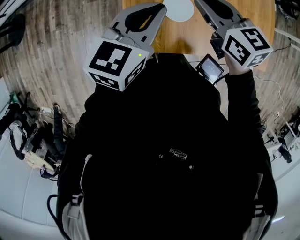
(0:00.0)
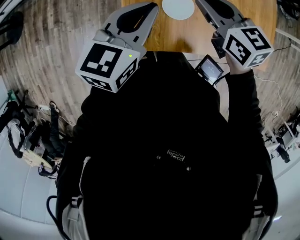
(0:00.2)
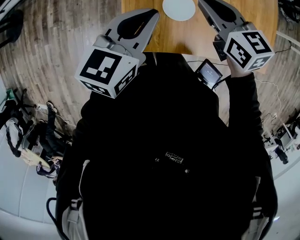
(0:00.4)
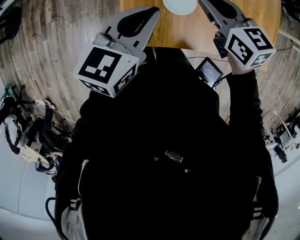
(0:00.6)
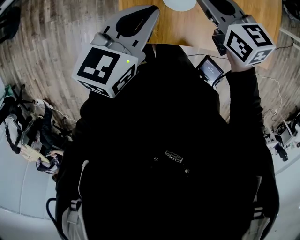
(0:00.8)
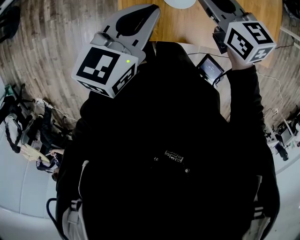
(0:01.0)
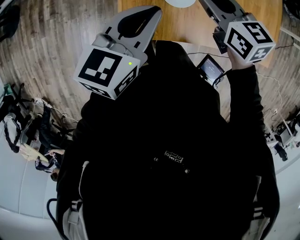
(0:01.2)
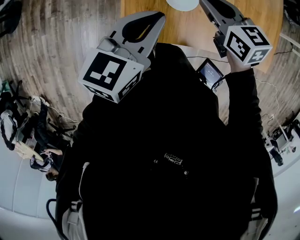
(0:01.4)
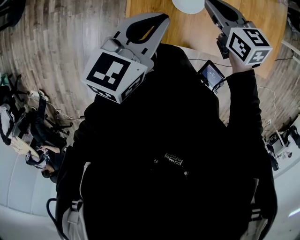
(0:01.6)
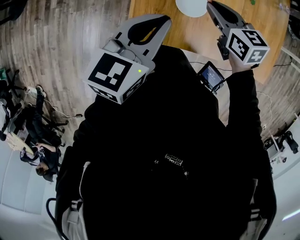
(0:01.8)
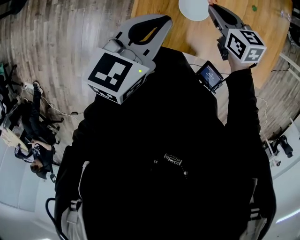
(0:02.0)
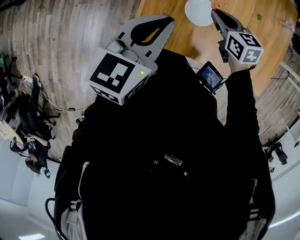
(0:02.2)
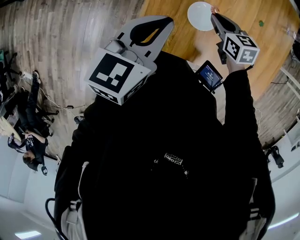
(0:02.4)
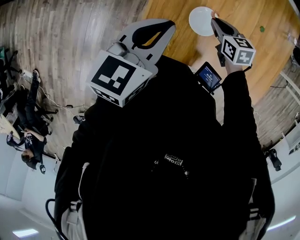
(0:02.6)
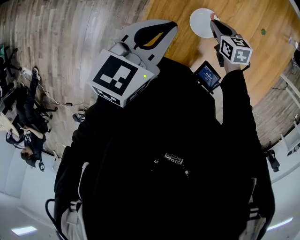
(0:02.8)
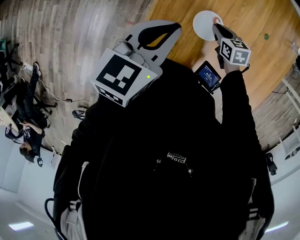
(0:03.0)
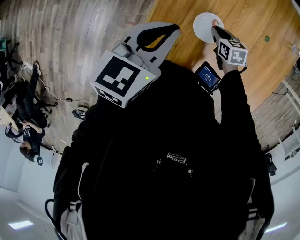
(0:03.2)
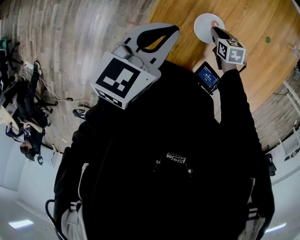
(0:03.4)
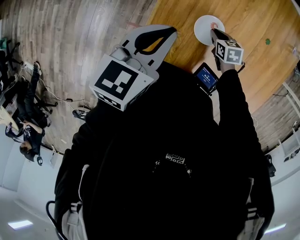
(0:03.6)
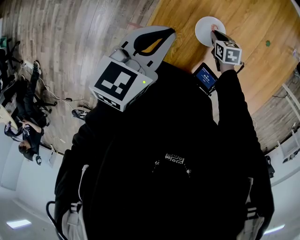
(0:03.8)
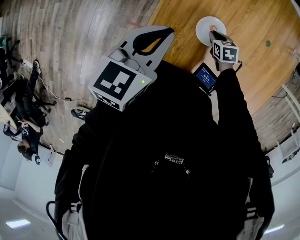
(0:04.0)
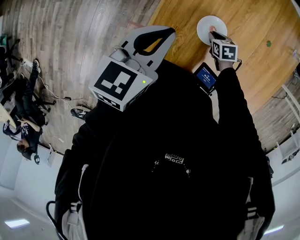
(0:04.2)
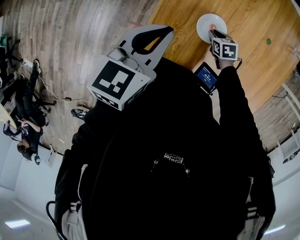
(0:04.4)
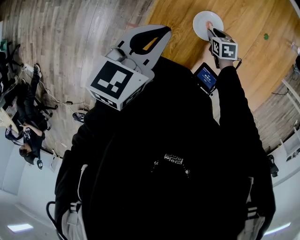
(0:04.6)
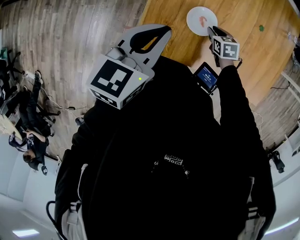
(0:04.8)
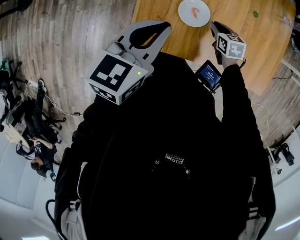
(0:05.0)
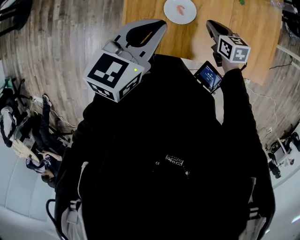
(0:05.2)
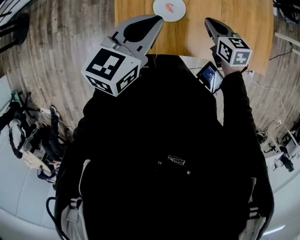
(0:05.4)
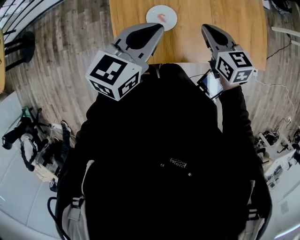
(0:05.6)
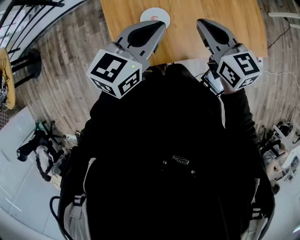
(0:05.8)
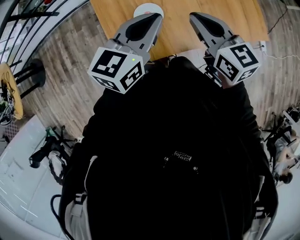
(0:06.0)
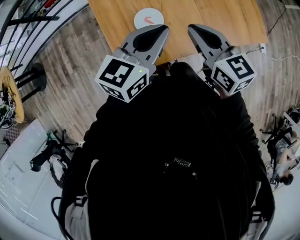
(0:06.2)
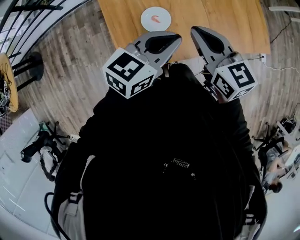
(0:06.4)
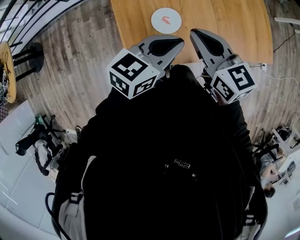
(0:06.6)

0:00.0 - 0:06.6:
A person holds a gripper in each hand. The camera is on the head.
0:00.0 - 0:01.6: The left gripper goes approximately 5 cm backward. The right gripper goes about 10 cm downward.
0:01.6 - 0:03.2: The right gripper goes approximately 20 cm downward, and swivels roughly 20 degrees; the left gripper shifts some 10 cm forward and to the left.
0:03.2 - 0:05.0: The left gripper shifts by approximately 5 cm, while the right gripper changes place by about 5 cm.
0:05.0 - 0:06.6: The left gripper shifts by about 15 cm, and turns by about 30 degrees. Meanwhile the right gripper heads upward, covering roughly 30 cm, and tips its fingers upward by roughly 40 degrees.

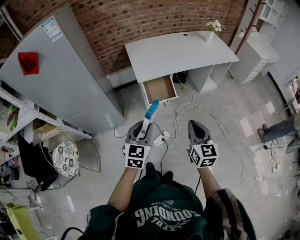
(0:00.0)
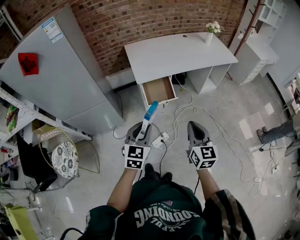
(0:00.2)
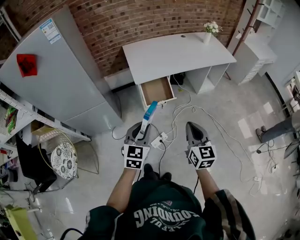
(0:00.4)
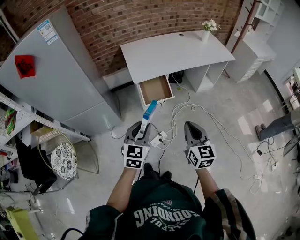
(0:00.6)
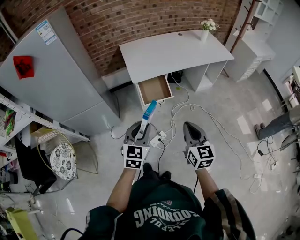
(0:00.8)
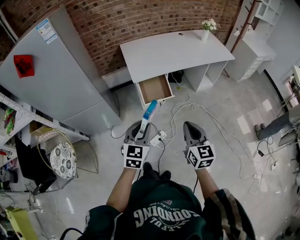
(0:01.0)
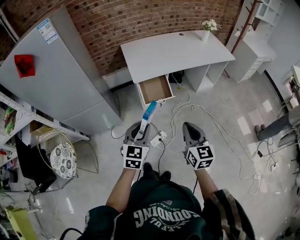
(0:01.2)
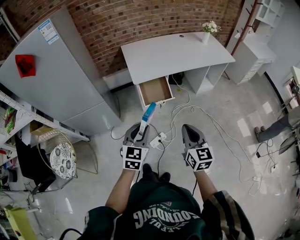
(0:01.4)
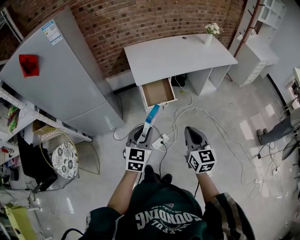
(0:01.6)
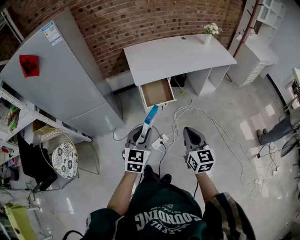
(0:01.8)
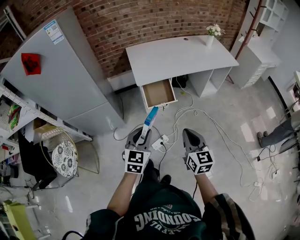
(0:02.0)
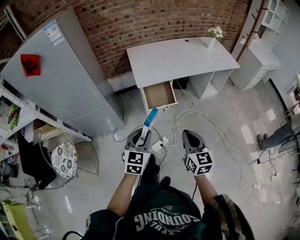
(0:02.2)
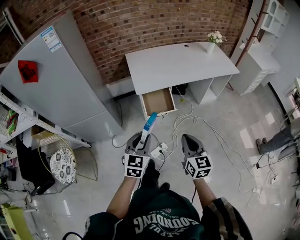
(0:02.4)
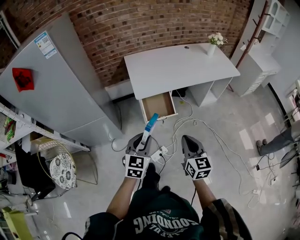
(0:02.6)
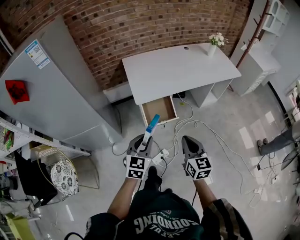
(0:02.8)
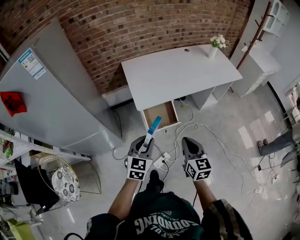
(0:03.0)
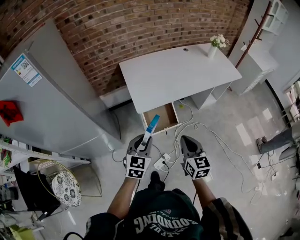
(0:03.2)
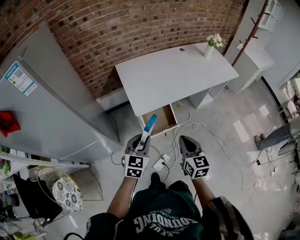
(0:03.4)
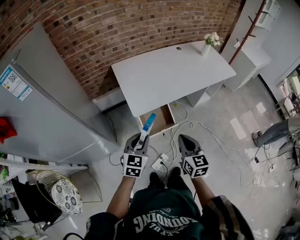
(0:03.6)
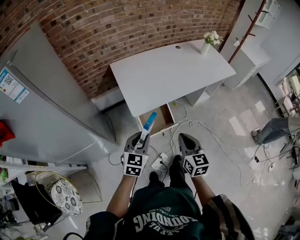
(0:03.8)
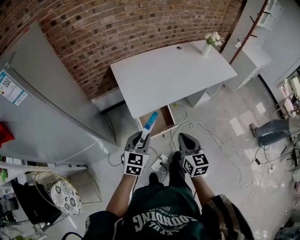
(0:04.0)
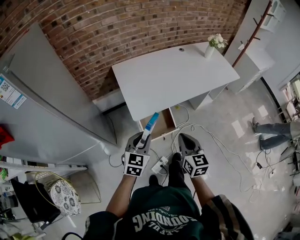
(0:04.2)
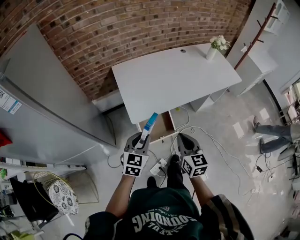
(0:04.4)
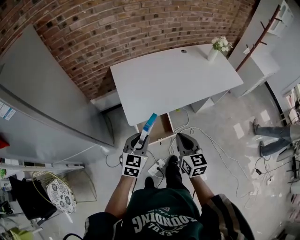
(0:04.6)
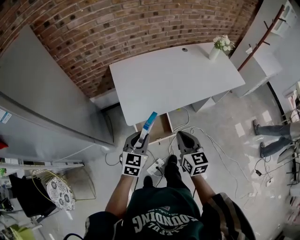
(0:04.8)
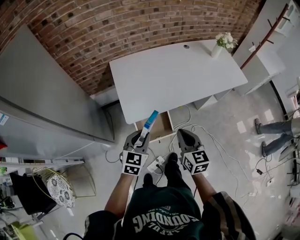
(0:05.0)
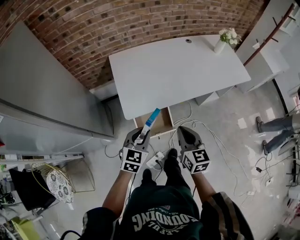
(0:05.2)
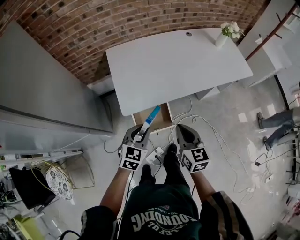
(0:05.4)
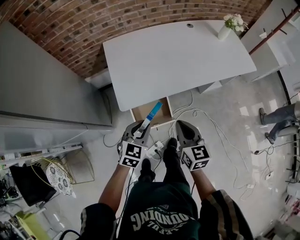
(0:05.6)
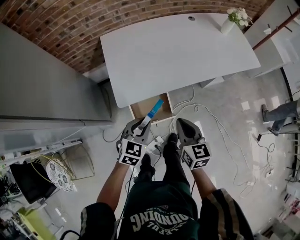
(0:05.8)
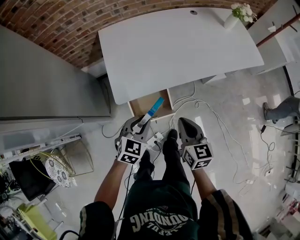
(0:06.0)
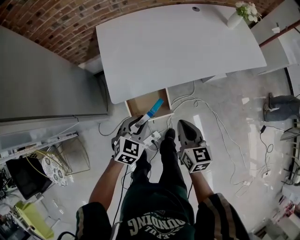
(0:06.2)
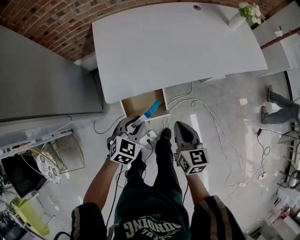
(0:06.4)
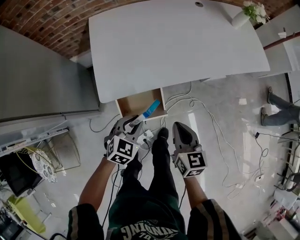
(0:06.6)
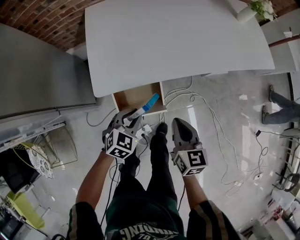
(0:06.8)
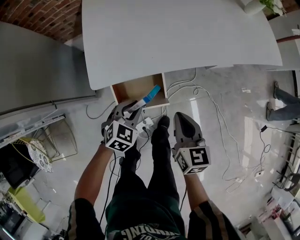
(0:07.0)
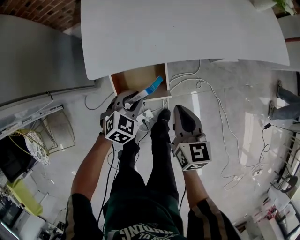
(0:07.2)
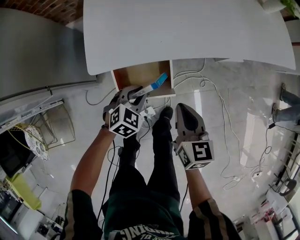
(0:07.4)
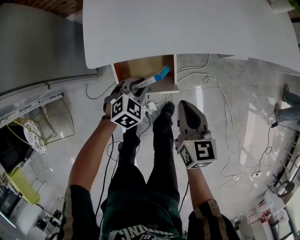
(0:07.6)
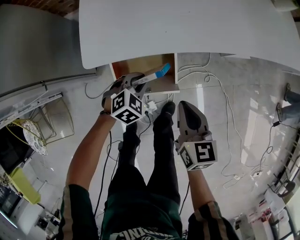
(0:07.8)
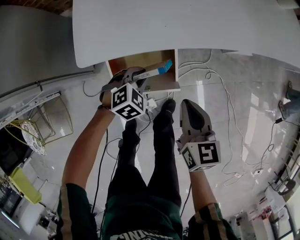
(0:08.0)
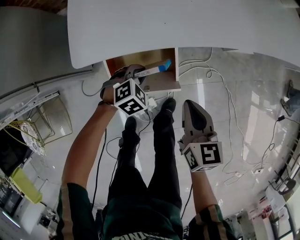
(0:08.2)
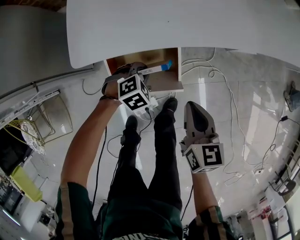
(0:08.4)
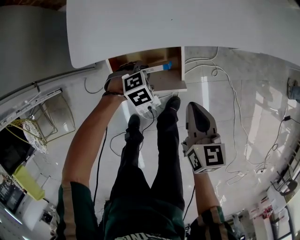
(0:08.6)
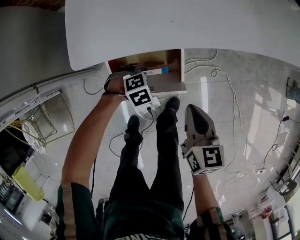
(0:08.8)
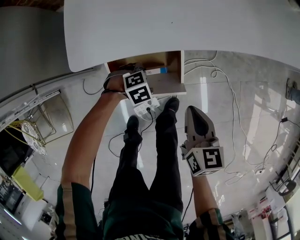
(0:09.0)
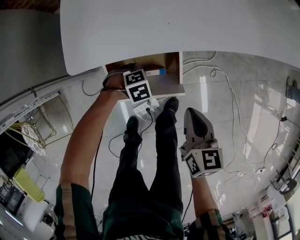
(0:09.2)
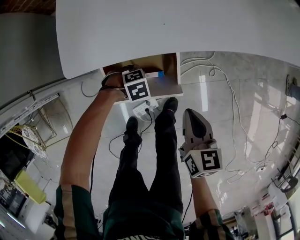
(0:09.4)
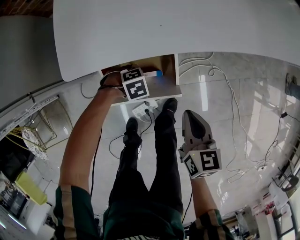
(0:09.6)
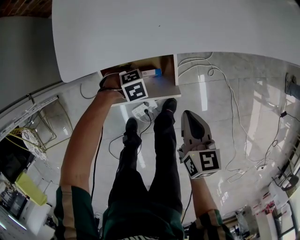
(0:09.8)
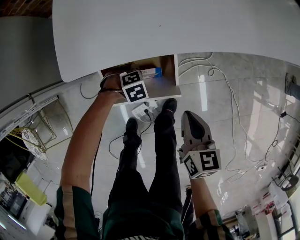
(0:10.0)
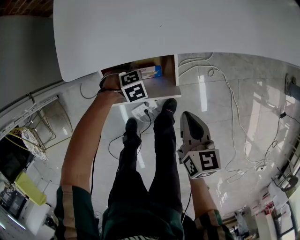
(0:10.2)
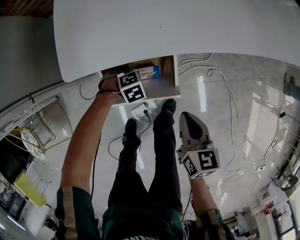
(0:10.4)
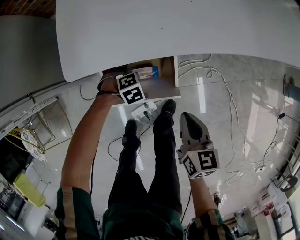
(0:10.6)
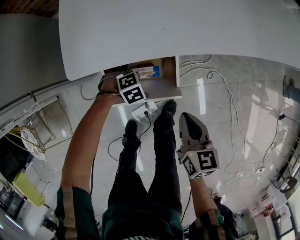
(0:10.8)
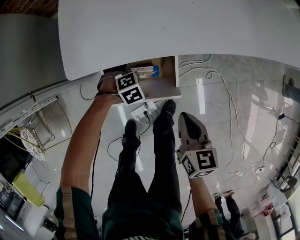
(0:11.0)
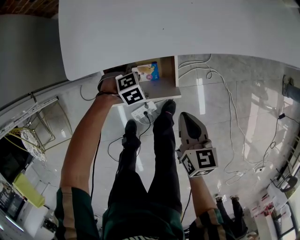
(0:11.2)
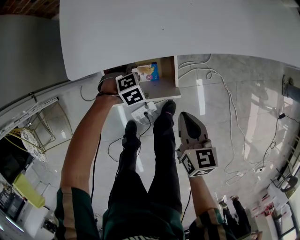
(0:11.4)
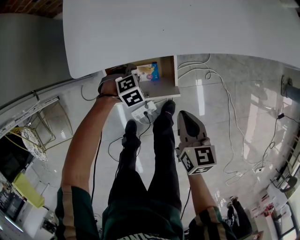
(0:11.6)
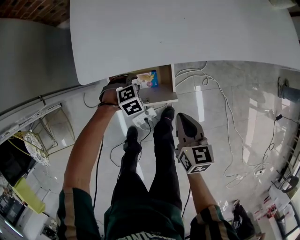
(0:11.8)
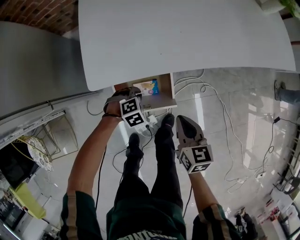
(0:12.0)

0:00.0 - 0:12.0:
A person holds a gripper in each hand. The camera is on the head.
0:00.0 - 0:01.6: The grippers make only small movements.
0:01.6 - 0:03.0: The grippers both shift forward by roughly 15 cm.
0:03.0 - 0:04.4: Both grippers move forward, about 15 cm.
0:04.4 - 0:06.0: The right gripper goes approximately 15 cm downward, forward and to the right. Meanwhile the left gripper moves downward, to the right and forward, roughly 15 cm.
0:06.0 - 0:07.6: The two grippers go roughly 20 cm downward.
0:07.6 - 0:09.0: The left gripper is displaced downward by about 15 cm, and rotates roughly 30 degrees. Meanwhile the right gripper heads downward, covering approximately 10 cm.
0:09.0 - 0:10.4: There are only small adjustments of the grippers.
0:10.4 - 0:12.0: The left gripper travels upward by about 10 cm, and closes its fingers; the right gripper travels upward by roughly 5 cm.

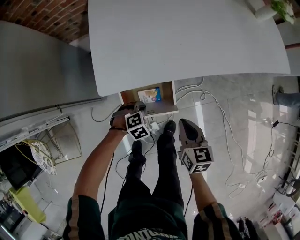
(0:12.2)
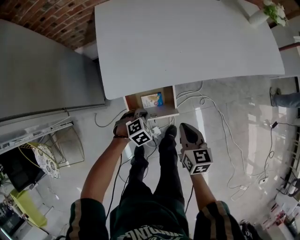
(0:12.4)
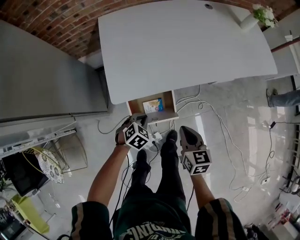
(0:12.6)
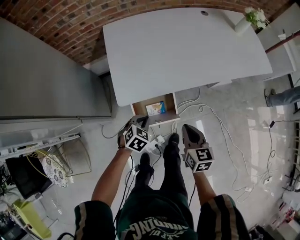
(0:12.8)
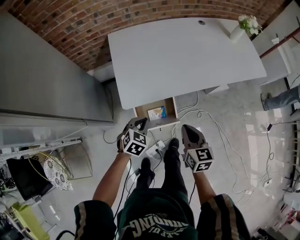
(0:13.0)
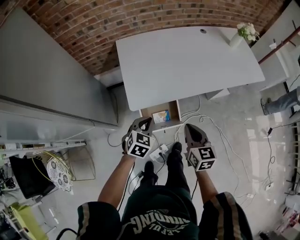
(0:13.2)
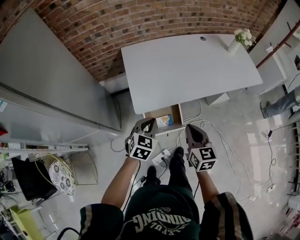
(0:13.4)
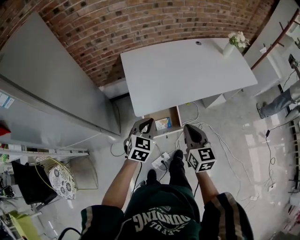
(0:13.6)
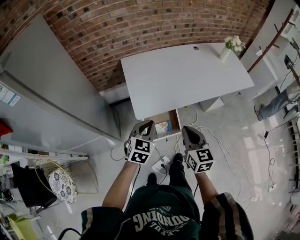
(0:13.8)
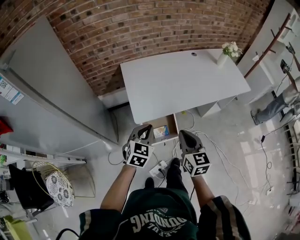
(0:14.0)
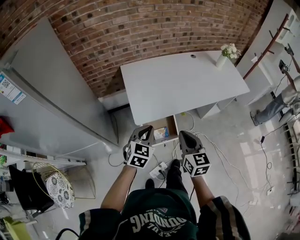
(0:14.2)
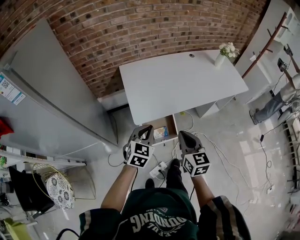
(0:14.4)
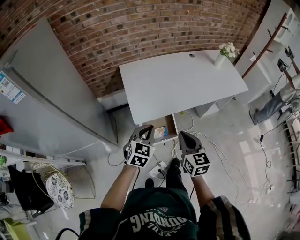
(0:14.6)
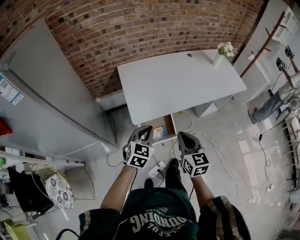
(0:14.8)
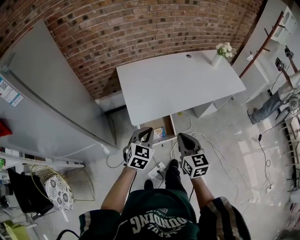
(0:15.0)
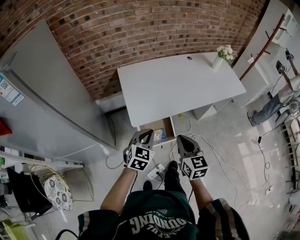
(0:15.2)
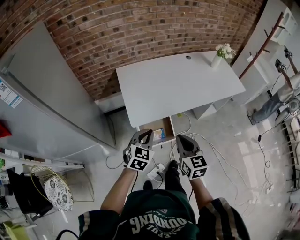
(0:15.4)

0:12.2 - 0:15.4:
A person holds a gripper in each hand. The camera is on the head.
0:12.2 - 0:13.8: Both grippers travel together upward, approximately 35 cm. The left gripper angles its fingers upward, by some 40 degrees. Meanwhile the right gripper changes its angle by approximately 20 degrees.
0:13.8 - 0:15.4: The grippers move only a little.

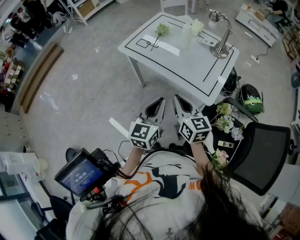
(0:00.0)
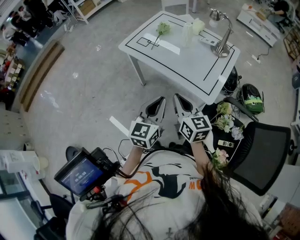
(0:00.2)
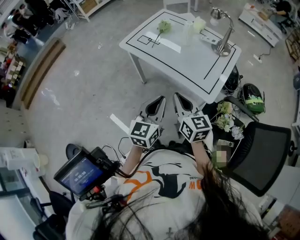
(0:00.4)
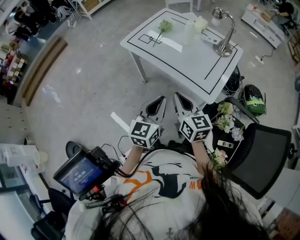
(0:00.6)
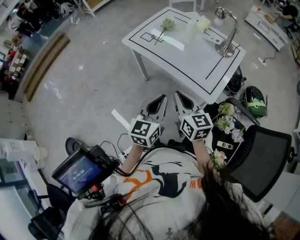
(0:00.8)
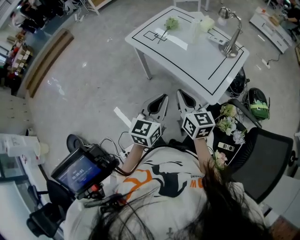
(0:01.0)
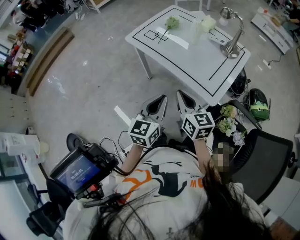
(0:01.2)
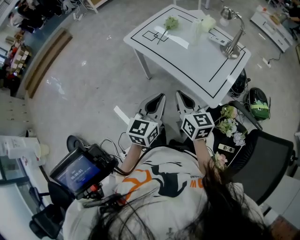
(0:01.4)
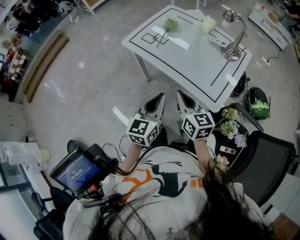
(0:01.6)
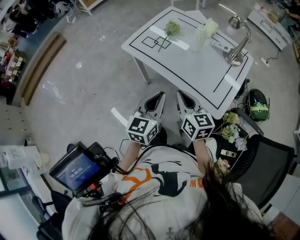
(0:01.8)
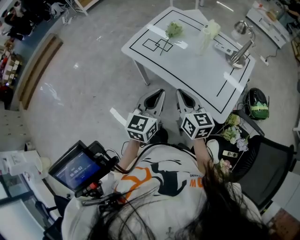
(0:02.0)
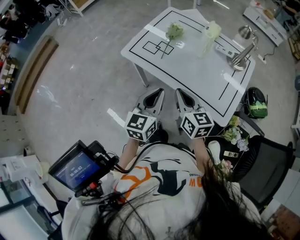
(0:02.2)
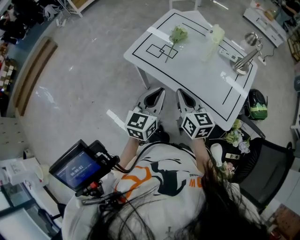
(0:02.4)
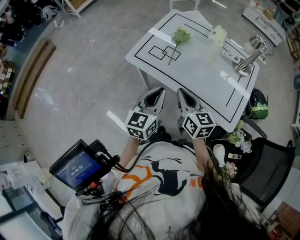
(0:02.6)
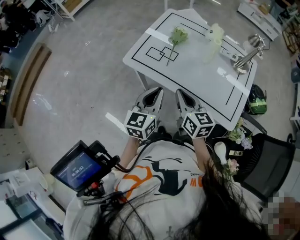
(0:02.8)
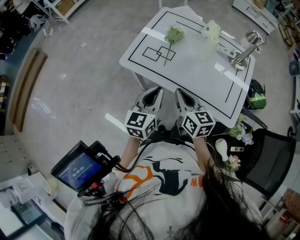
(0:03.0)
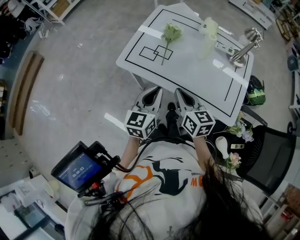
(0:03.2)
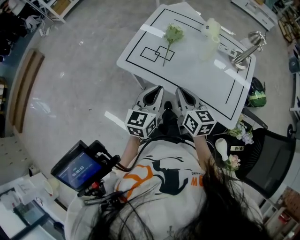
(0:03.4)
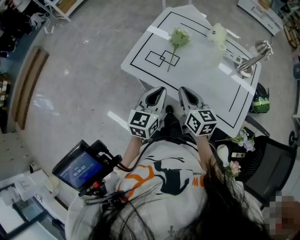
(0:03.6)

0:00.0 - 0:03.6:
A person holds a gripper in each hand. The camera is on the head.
0:00.0 - 0:01.8: The two grippers go roughly 10 cm forward.
0:01.8 - 0:03.6: Both grippers travel together forward and to the left, some 20 cm.
